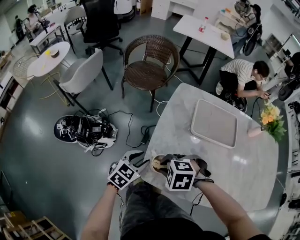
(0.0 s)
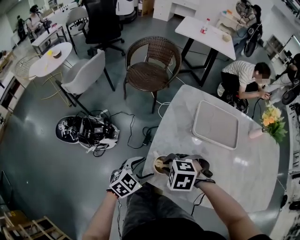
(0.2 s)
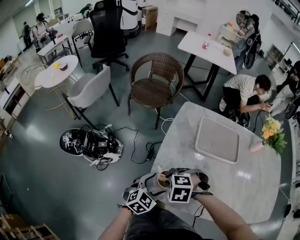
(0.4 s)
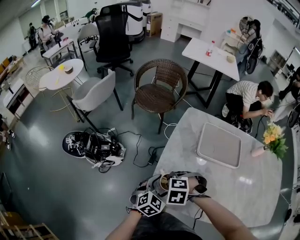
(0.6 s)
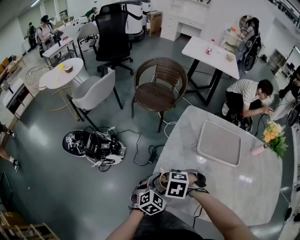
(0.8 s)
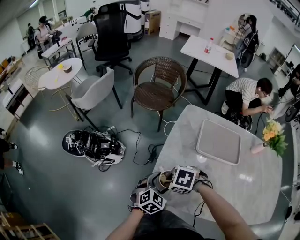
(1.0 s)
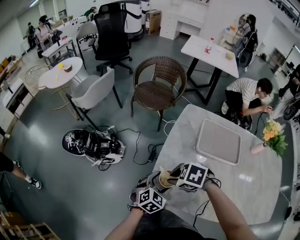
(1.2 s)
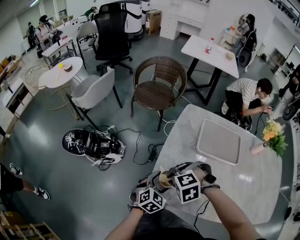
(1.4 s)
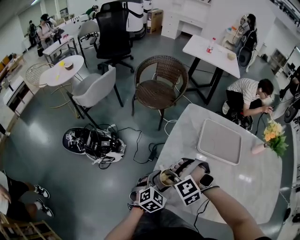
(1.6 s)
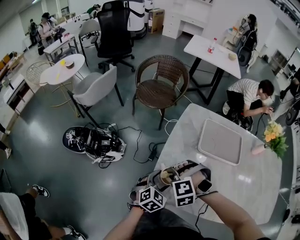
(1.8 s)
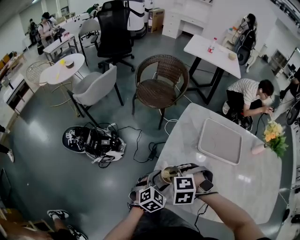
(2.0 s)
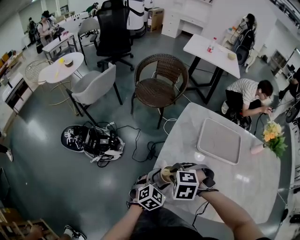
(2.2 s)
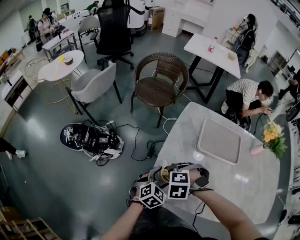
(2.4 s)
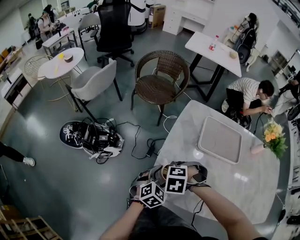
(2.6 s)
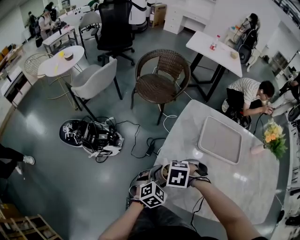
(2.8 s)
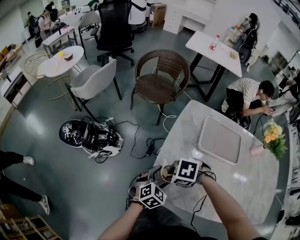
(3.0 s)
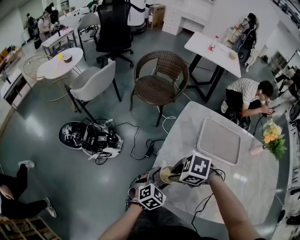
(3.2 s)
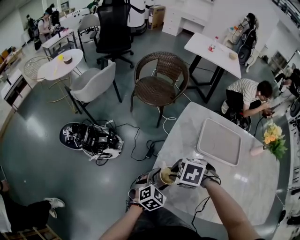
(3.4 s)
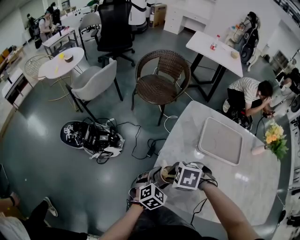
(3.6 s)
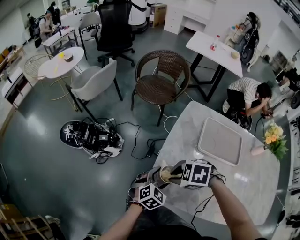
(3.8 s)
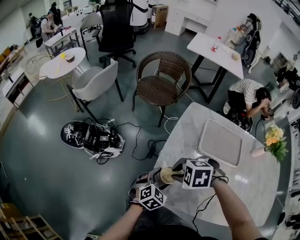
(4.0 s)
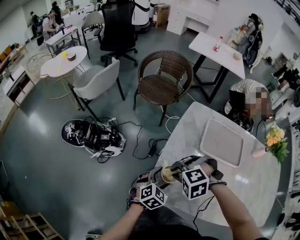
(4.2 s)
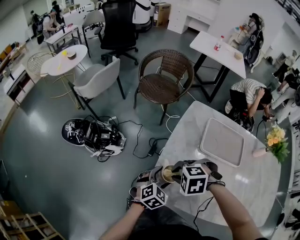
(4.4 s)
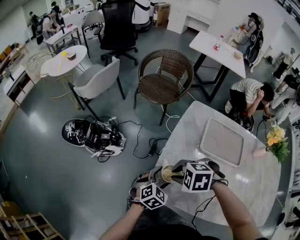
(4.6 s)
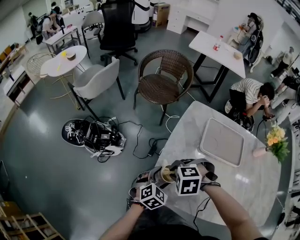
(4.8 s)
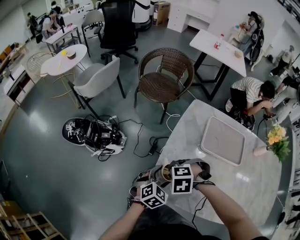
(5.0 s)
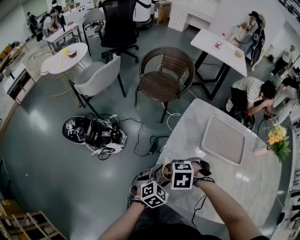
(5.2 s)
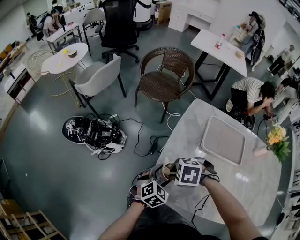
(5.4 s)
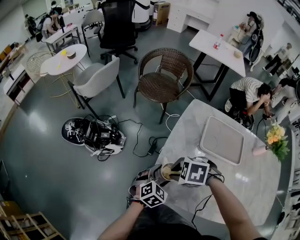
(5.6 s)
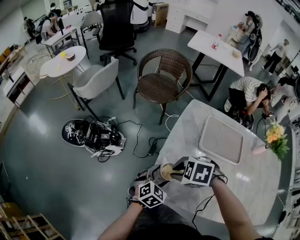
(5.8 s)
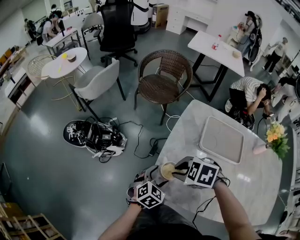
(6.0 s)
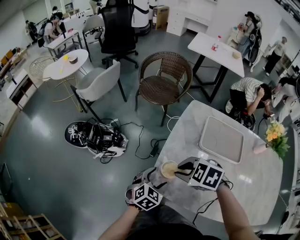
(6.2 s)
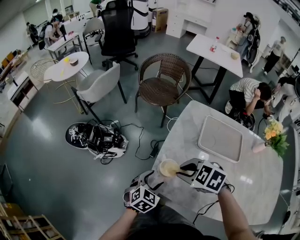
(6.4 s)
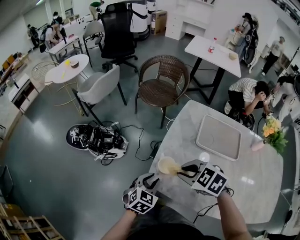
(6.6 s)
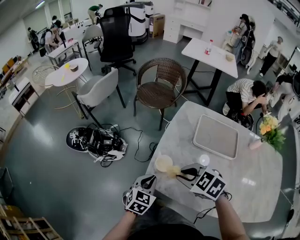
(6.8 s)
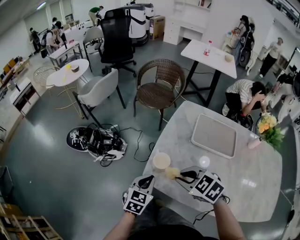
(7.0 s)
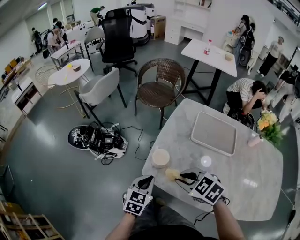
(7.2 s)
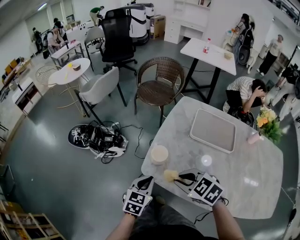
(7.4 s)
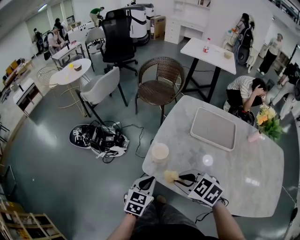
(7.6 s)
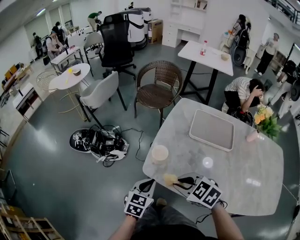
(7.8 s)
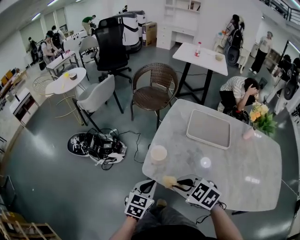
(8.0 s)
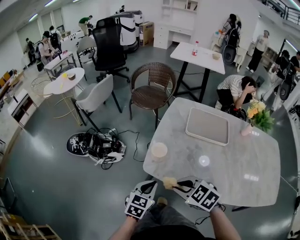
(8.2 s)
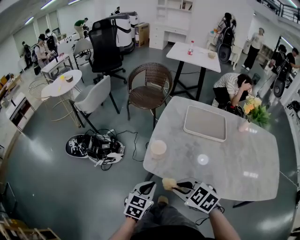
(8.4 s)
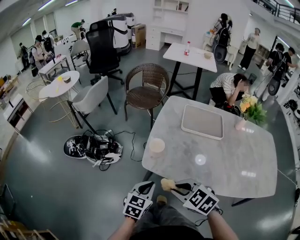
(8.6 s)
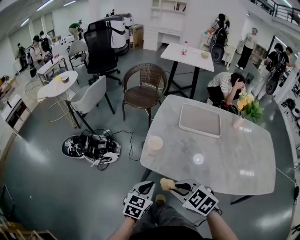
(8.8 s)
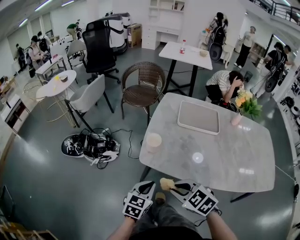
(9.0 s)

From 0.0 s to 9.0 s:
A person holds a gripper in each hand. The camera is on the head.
From 0.0 s to 1.6 s: The right gripper rolls counterclockwise, seen from behind, by some 50 degrees. The left gripper changes place by roughly 5 cm, and opens its fingers.
From 1.6 s to 3.0 s: The right gripper rolls clockwise, seen from behind, by some 60 degrees.
From 3.0 s to 4.4 s: The right gripper changes its angle by approximately 30 degrees.
From 4.4 s to 6.0 s: The right gripper swivels some 20 degrees.
From 6.0 s to 7.6 s: The right gripper moves roughly 15 cm, and rotates about 20 degrees. The left gripper changes place by some 10 cm, rotates about 30 degrees, and closes.
From 7.6 s to 9.0 s: The grippers both shift backward by about 10 cm.

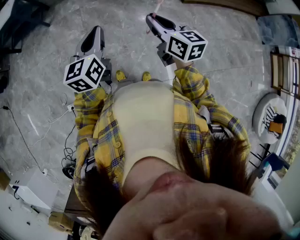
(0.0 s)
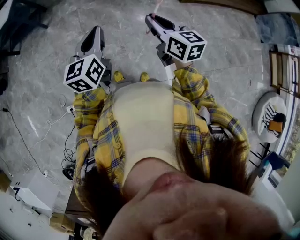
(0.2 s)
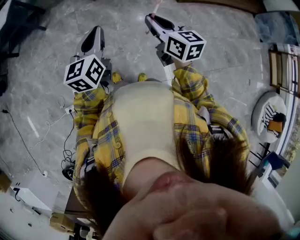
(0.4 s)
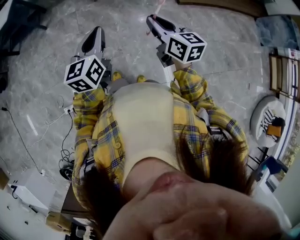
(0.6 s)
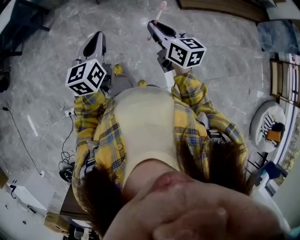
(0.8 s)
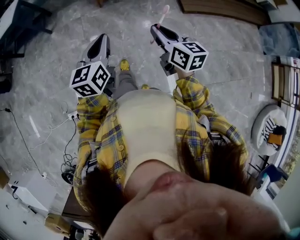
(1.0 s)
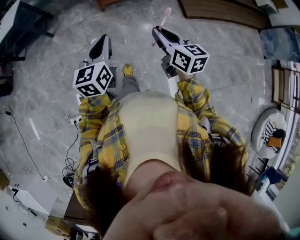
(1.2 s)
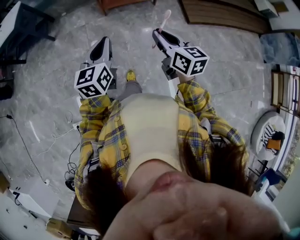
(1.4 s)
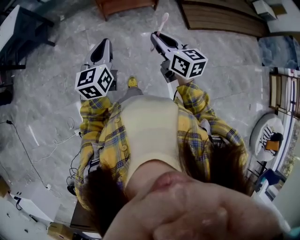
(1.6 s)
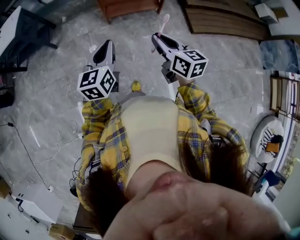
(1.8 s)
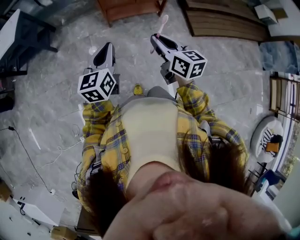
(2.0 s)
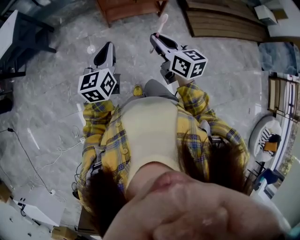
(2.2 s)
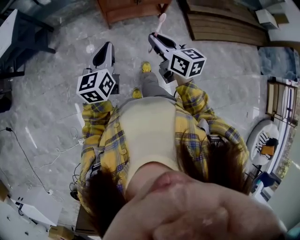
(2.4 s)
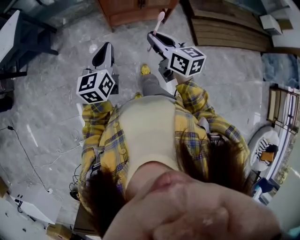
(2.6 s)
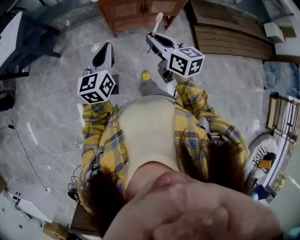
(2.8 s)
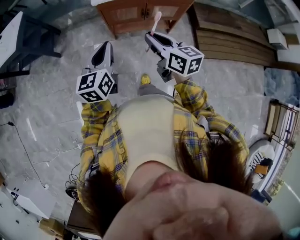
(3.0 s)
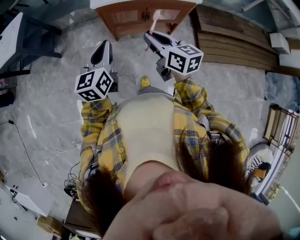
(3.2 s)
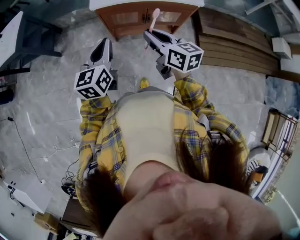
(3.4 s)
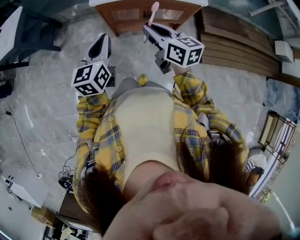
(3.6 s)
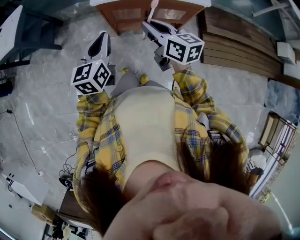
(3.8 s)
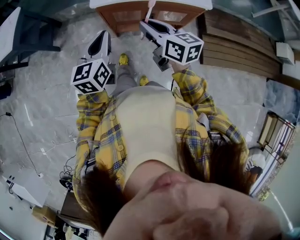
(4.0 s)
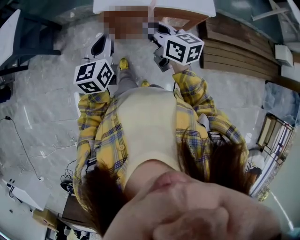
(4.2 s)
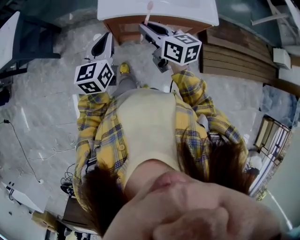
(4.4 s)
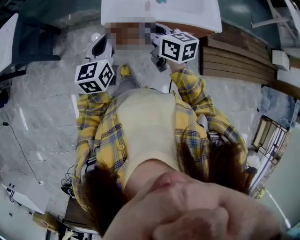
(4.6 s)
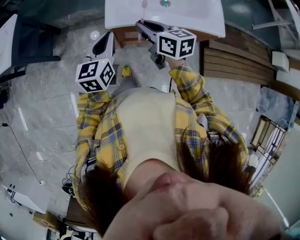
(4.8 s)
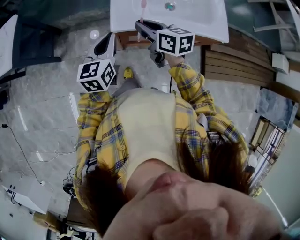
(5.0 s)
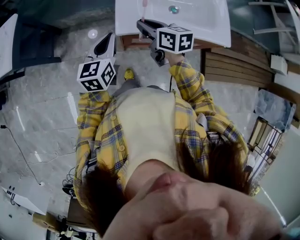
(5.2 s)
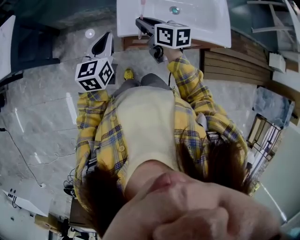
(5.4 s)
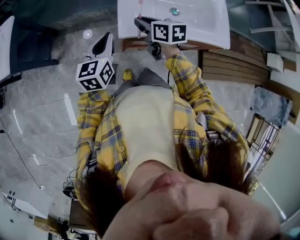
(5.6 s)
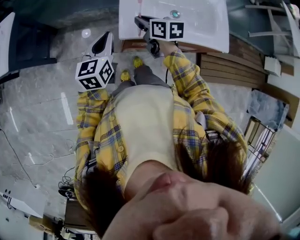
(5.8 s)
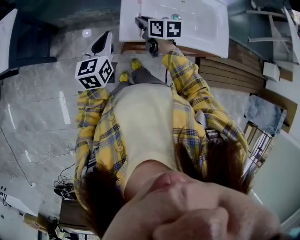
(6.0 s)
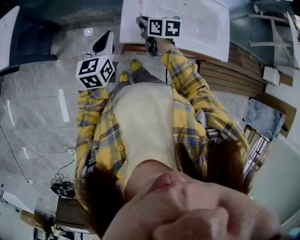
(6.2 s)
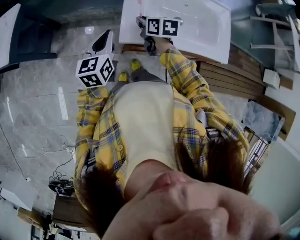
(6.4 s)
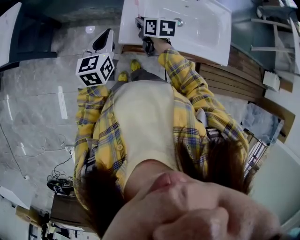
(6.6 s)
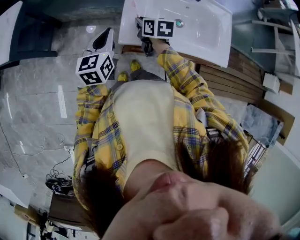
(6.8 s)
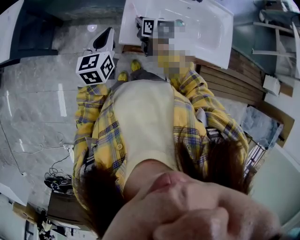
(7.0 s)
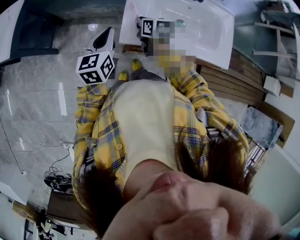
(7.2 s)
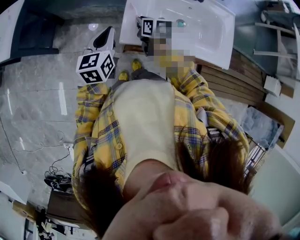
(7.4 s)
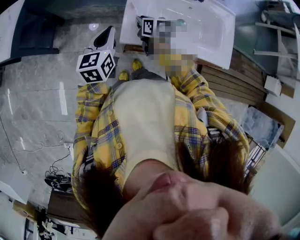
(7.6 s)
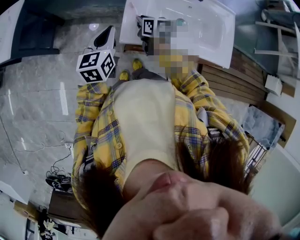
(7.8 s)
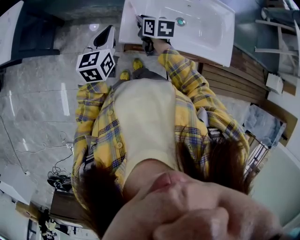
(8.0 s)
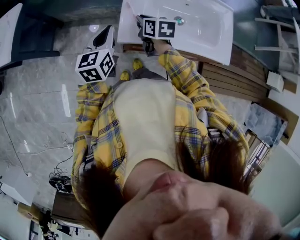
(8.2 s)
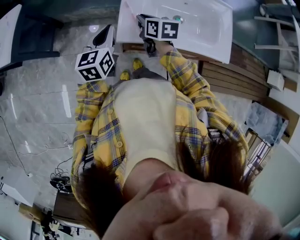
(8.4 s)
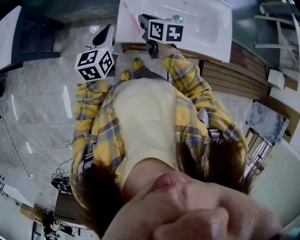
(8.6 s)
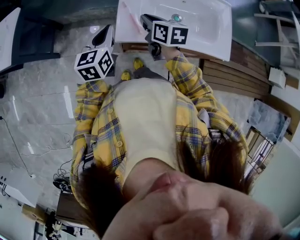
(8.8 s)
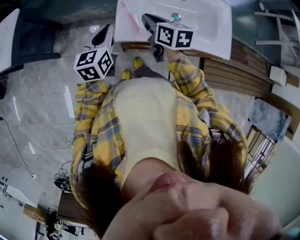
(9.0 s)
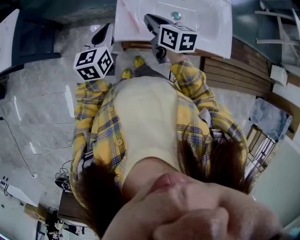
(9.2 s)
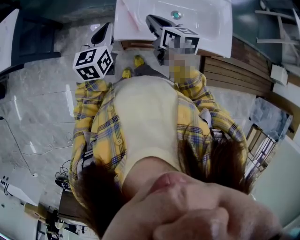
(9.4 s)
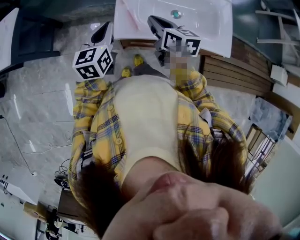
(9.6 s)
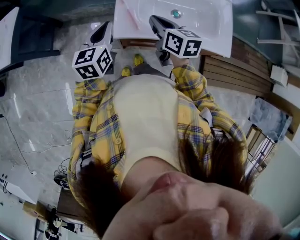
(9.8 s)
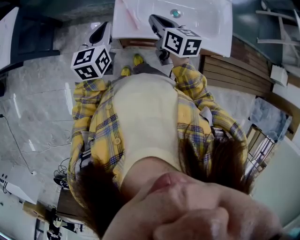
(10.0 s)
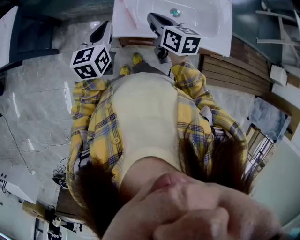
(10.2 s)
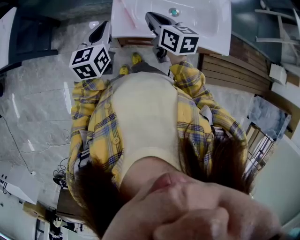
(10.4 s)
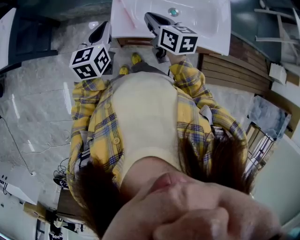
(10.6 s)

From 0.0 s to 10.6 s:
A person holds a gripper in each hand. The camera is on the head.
From 0.0 s to 1.6 s: Both grippers travel together forward, some 20 cm.
From 1.6 s to 3.0 s: Both grippers travel together forward, roughly 30 cm.
From 3.0 s to 4.6 s: Both grippers travel together forward, about 25 cm.
From 4.6 s to 6.0 s: The right gripper goes approximately 20 cm forward and downward; the left gripper moves forward and to the left, roughly 15 cm.
From 6.0 s to 7.6 s: The grippers make only small movements.
From 7.6 s to 9.0 s: The right gripper heads upward, covering approximately 10 cm.
From 9.0 s to 10.6 s: The grippers stay close to where they were, moving slightly.

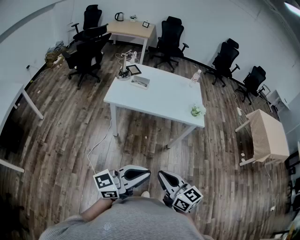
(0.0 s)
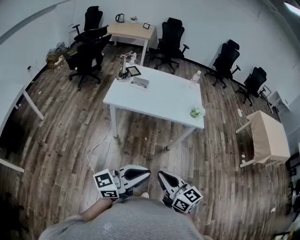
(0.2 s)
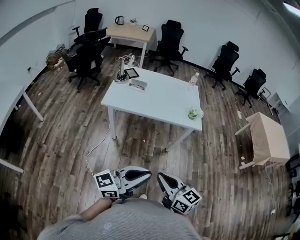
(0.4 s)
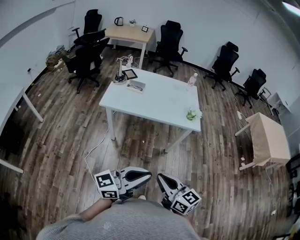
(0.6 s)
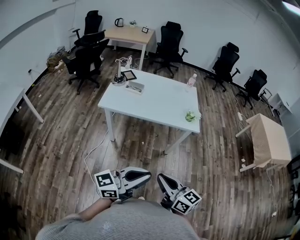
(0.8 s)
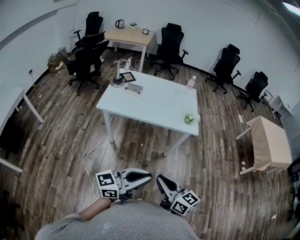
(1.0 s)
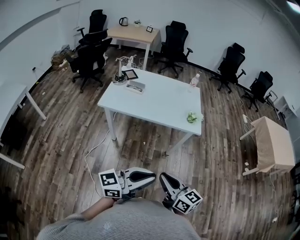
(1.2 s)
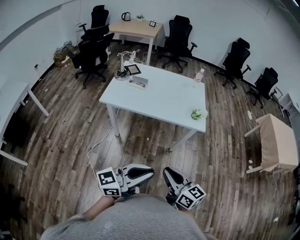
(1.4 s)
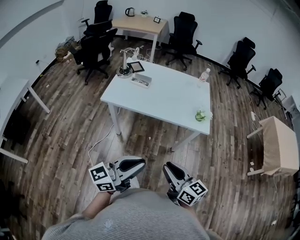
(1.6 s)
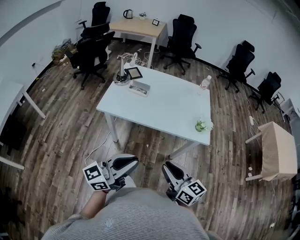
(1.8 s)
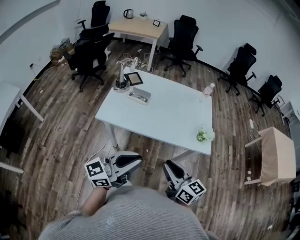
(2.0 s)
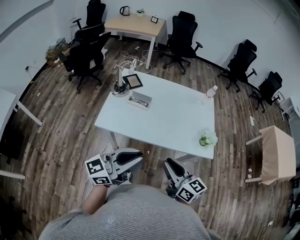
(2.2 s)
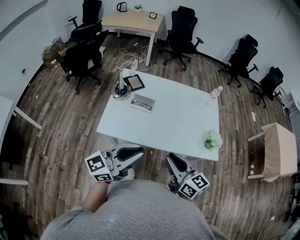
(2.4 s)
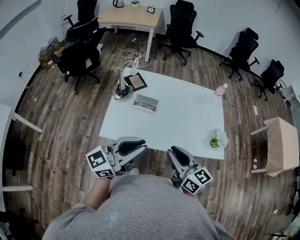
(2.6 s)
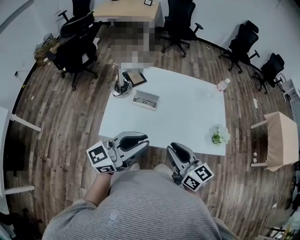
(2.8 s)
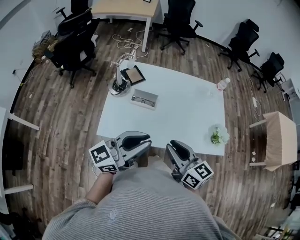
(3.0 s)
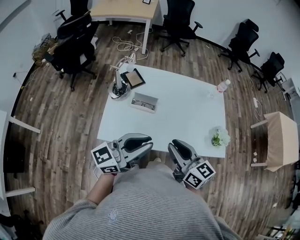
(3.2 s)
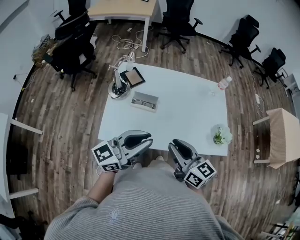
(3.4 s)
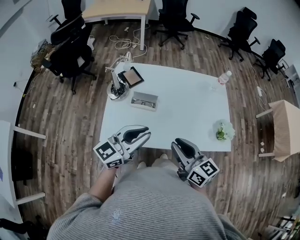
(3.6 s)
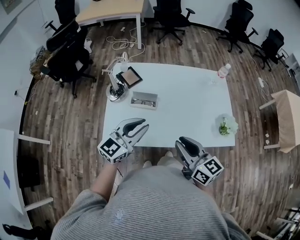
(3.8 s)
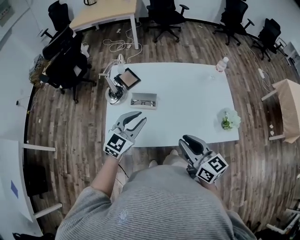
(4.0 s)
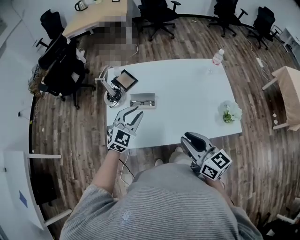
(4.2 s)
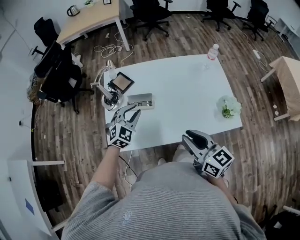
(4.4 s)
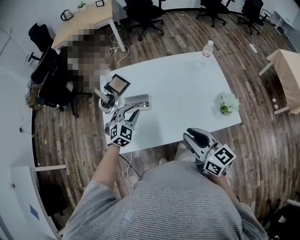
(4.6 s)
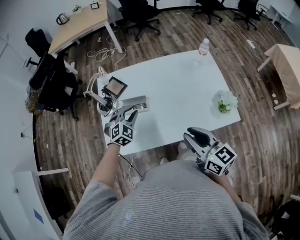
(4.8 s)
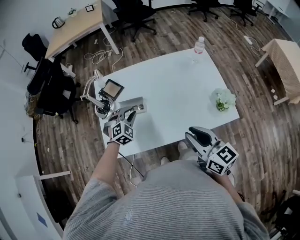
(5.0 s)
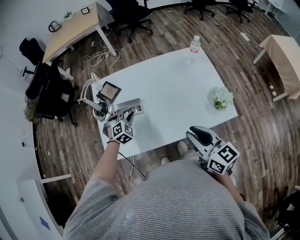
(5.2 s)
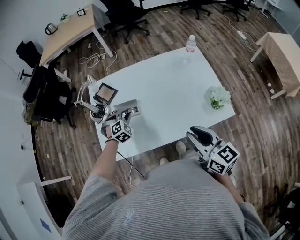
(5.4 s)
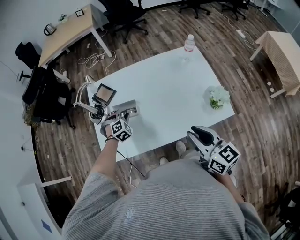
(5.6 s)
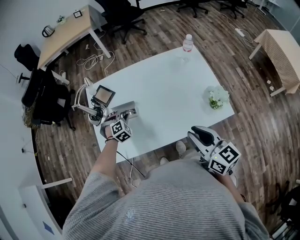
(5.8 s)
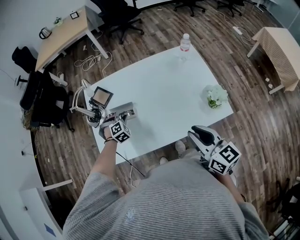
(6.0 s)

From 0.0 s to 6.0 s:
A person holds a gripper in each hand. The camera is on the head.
From 0.0 s to 1.6 s: The left gripper moves forward, some 10 cm. Meanwhile the right gripper goes roughly 15 cm forward and to the right.
From 1.6 s to 3.0 s: Both grippers move forward and to the left, approximately 40 cm.
From 3.0 s to 4.4 s: The right gripper moves to the right, approximately 5 cm. Meanwhile the left gripper travels forward and downward by roughly 25 cm, and points its fingers approximately 50 degrees further downward.
From 4.4 s to 6.0 s: The right gripper heads to the right, covering approximately 10 cm; the left gripper shifts approximately 15 cm downward and forward, and rotates about 40 degrees.
